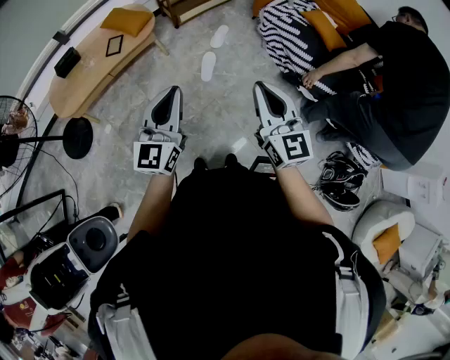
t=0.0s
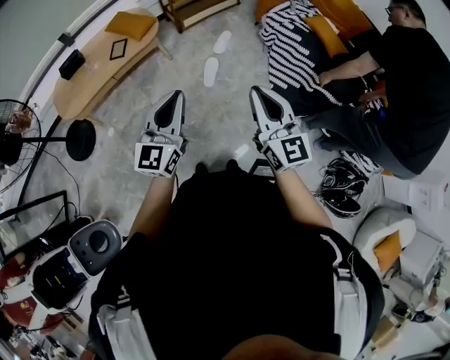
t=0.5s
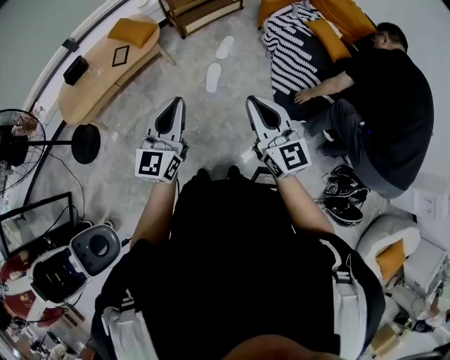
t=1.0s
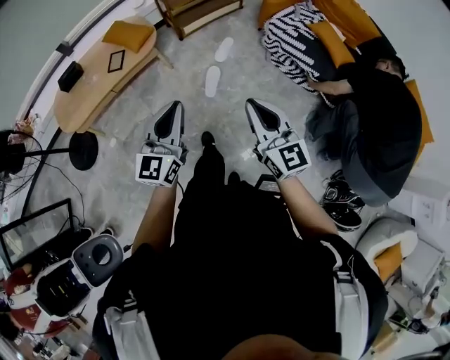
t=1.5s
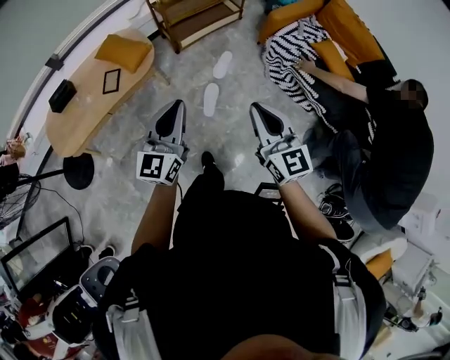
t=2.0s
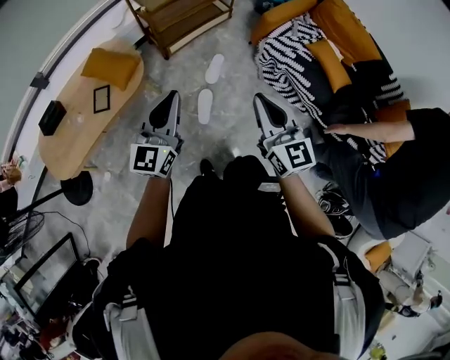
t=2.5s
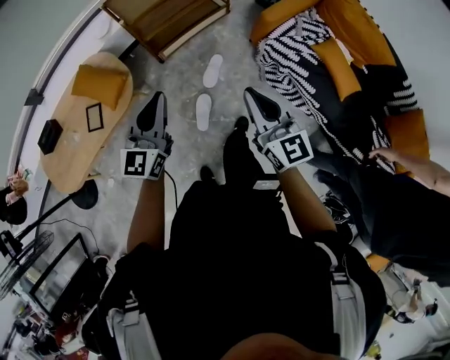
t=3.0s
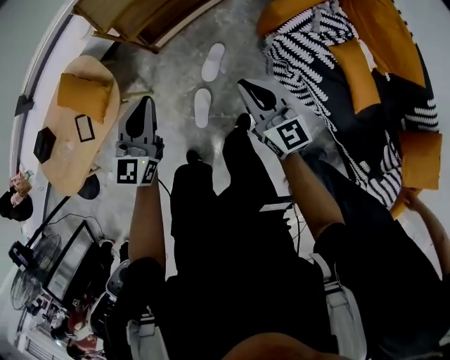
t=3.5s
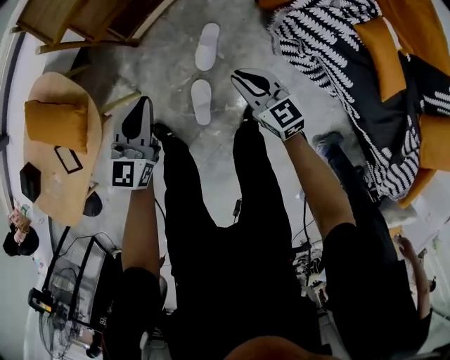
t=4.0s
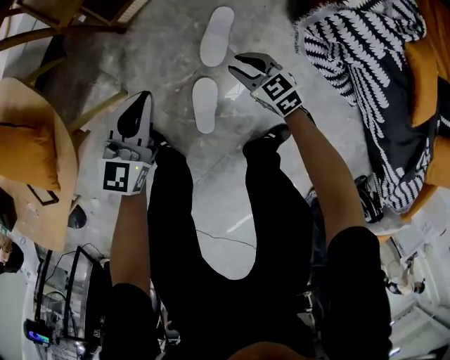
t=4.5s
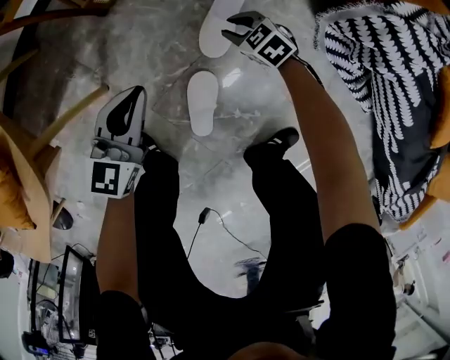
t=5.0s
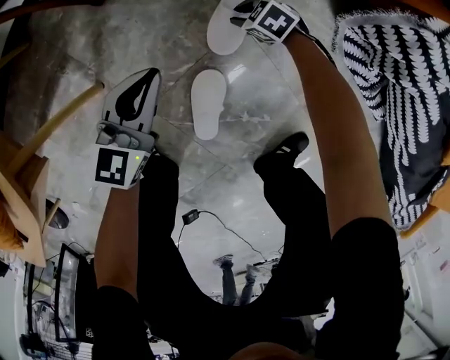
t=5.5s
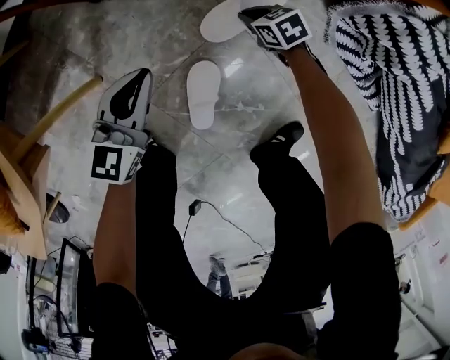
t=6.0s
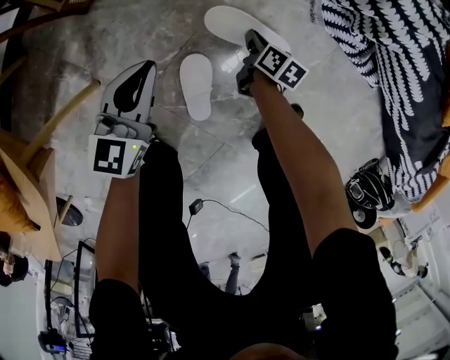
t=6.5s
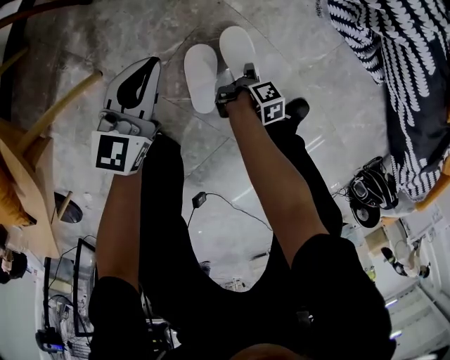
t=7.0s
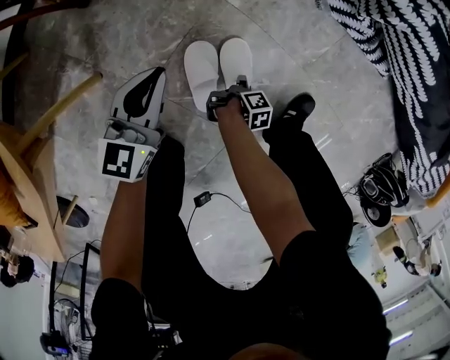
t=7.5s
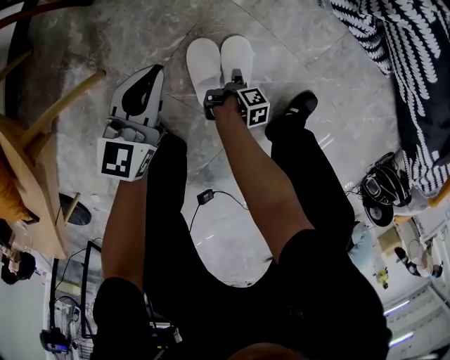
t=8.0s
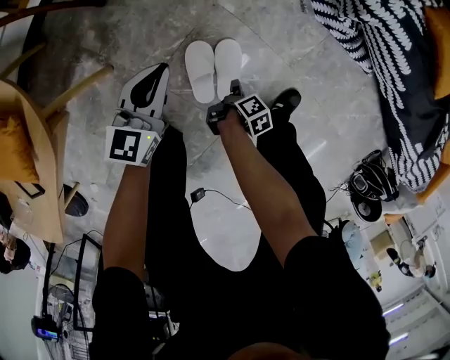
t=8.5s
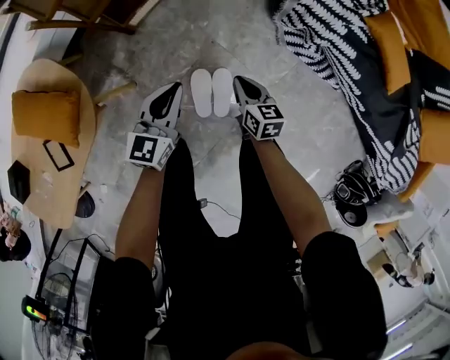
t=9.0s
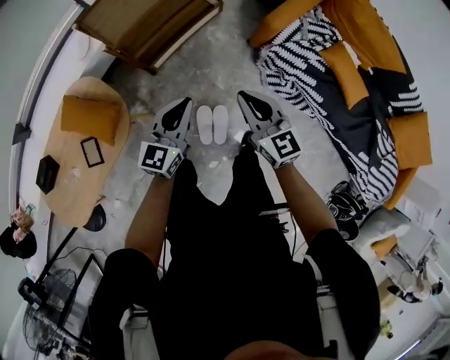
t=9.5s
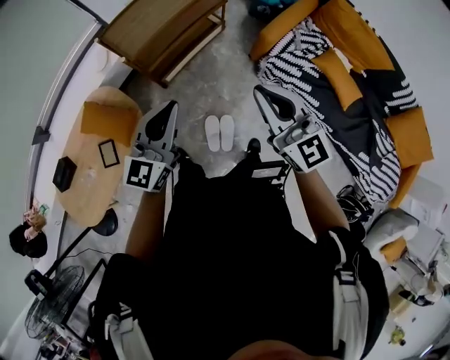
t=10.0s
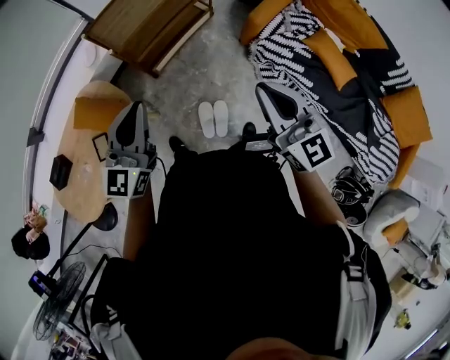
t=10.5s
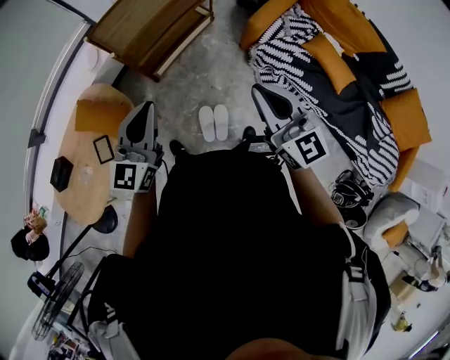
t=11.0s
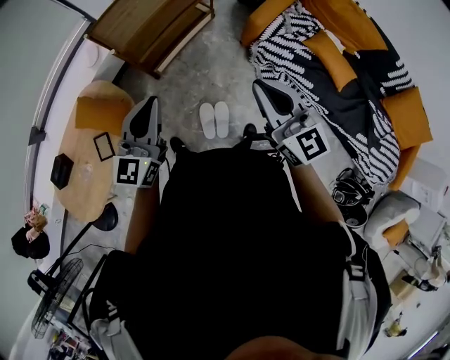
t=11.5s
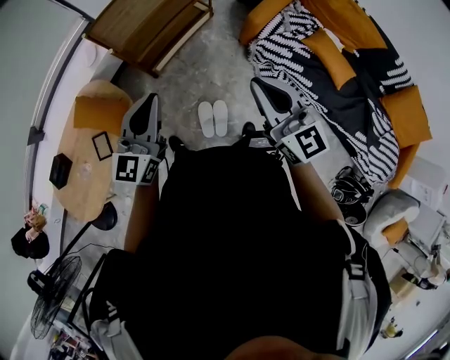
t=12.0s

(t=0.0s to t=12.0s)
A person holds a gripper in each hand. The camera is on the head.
t=0.0s - t=2.0s: The grippers both shift forward by some 25 cm.
t=2.0s - t=4.0s: The pair of grippers is taken forward, roughly 40 cm. The grippers both shift downward by some 35 cm. The right gripper changes its angle by some 30 degrees. Meanwhile the left gripper changes its angle by some 20 degrees.
t=4.0s - t=6.0s: Both grippers move downward, about 40 cm. The right gripper changes its angle by approximately 40 degrees, and opens, then closes again.
t=6.0s - t=8.0s: The right gripper ends up about 30 cm from where it was, rolls clockwise, seen from behind, by roughly 120 degrees, and opens; the left gripper shifts by some 5 cm.
t=8.0s - t=10.0s: The right gripper shifts roughly 90 cm upward, tips its fingers upward by approximately 60 degrees, and closes its fingers. Meanwhile the left gripper moves upward, about 60 cm, and rotates some 20 degrees.
t=10.0s - t=12.0s: The grippers stay close to where they were, moving slightly.

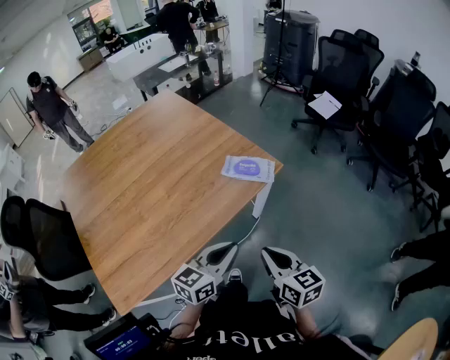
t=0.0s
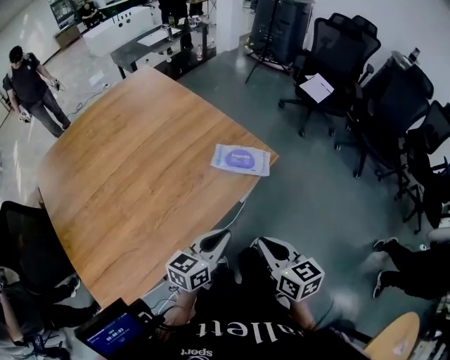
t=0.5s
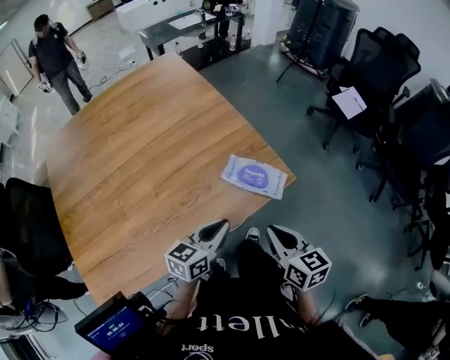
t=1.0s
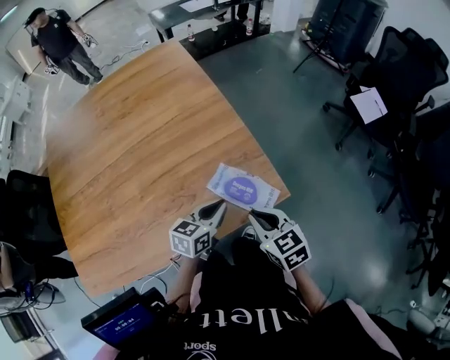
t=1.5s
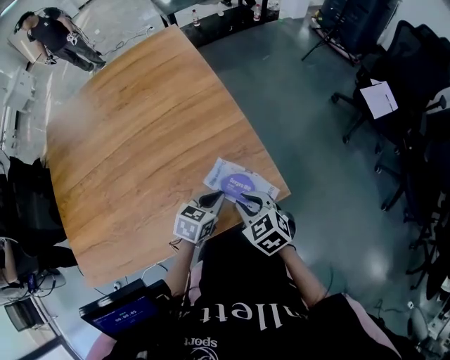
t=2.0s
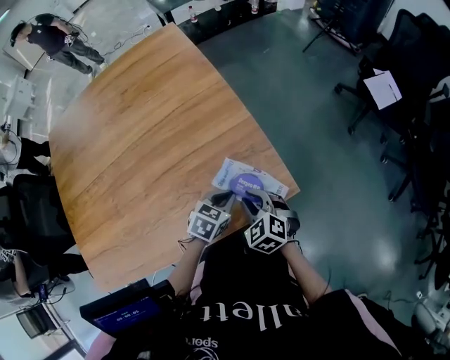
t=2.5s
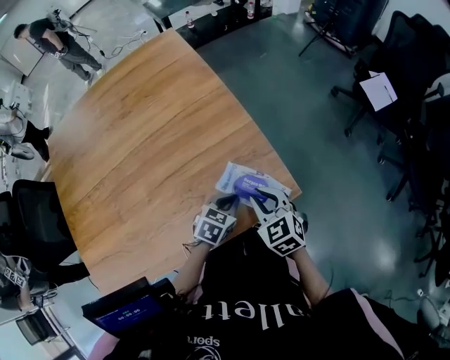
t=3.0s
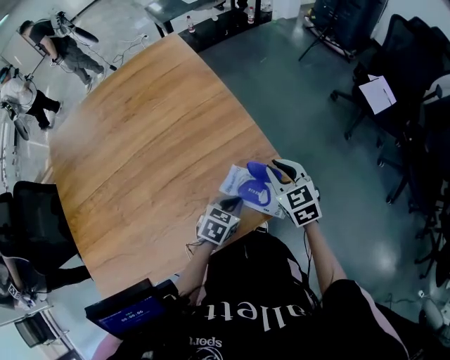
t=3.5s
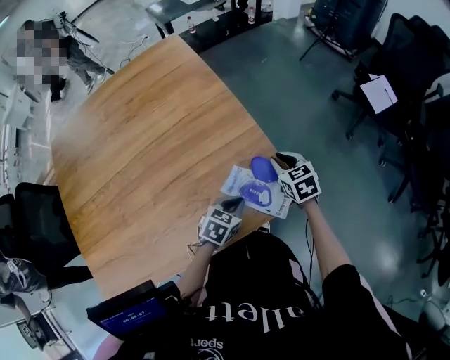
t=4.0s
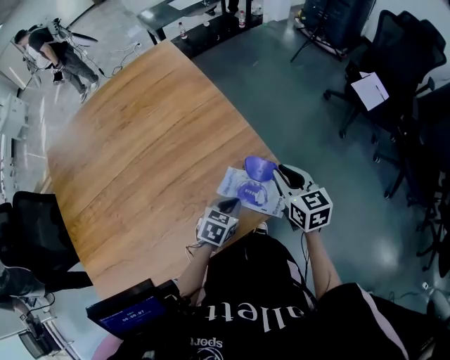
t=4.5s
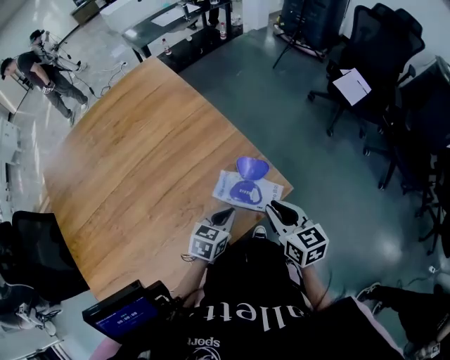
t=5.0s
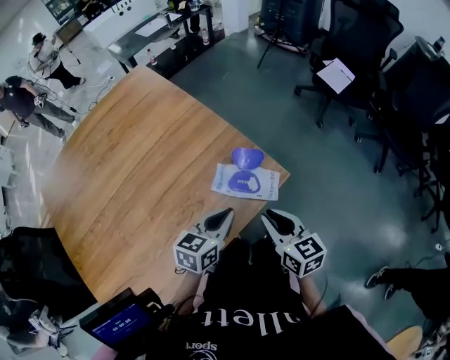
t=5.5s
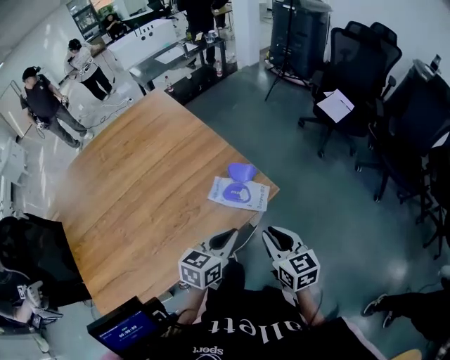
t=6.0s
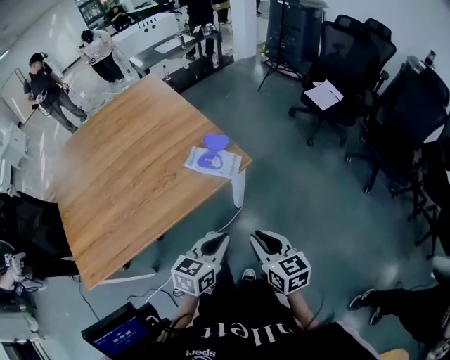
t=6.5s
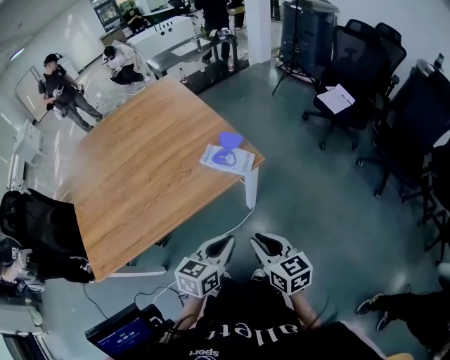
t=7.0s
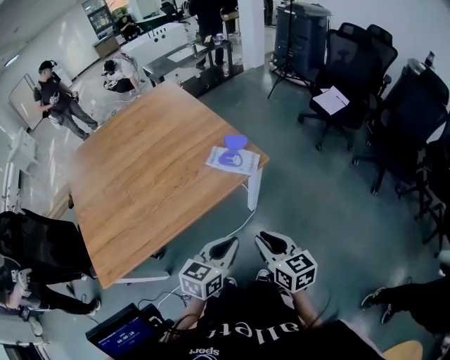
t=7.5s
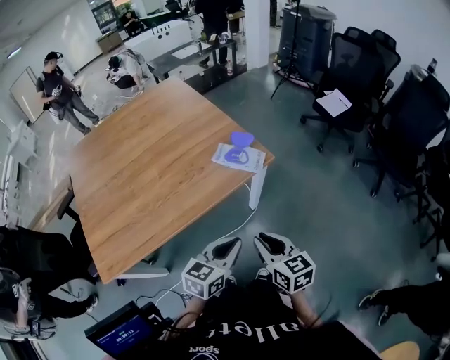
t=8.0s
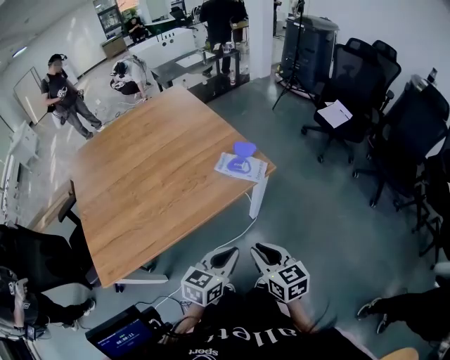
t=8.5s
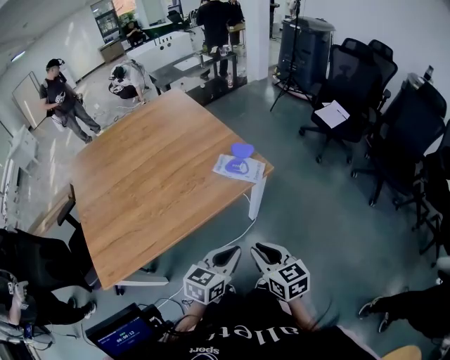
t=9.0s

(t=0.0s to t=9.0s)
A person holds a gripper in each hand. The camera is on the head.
t=0.0s - t=2.0s: The left gripper heads forward and downward, covering about 40 cm, and points its fingers about 30 degrees further downward, while the right gripper is displaced forward by approximately 35 cm, and rotates about 50 degrees.
t=2.0s - t=4.5s: The right gripper is displaced forward, to the right and upward by some 15 cm, and rotates approximately 40 degrees.
t=4.5s - t=7.0s: The right gripper heads backward, covering some 40 cm, while the left gripper heads backward and upward, covering approximately 35 cm, and rotates about 30 degrees.
t=7.0s - t=9.0s: The grippers both shift to the left by about 5 cm.

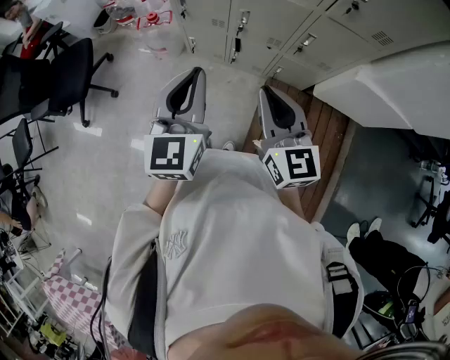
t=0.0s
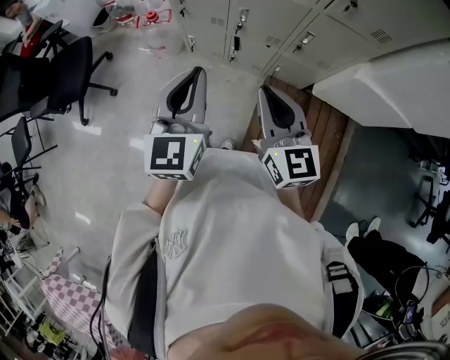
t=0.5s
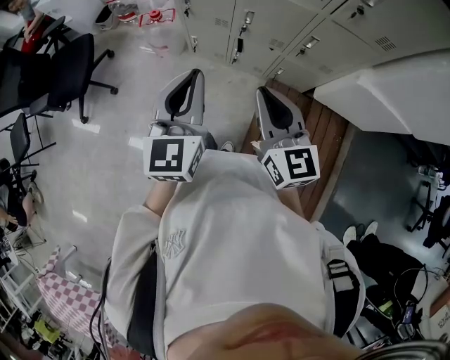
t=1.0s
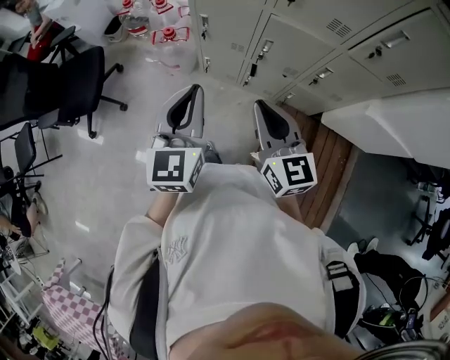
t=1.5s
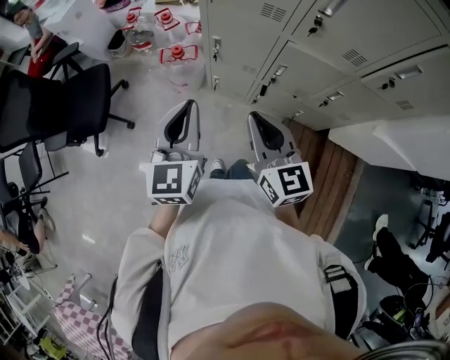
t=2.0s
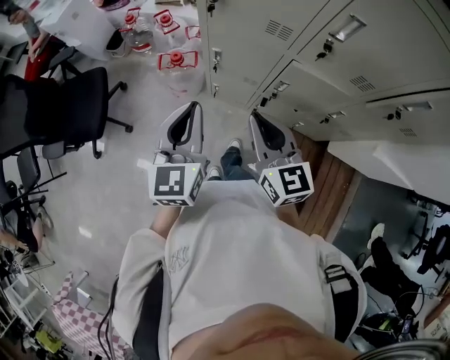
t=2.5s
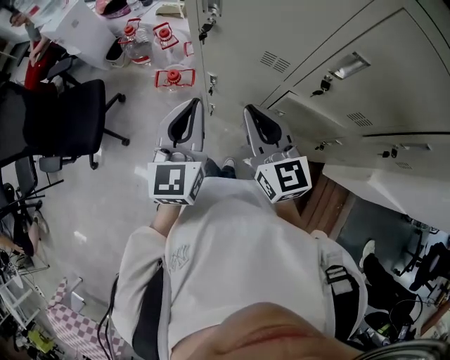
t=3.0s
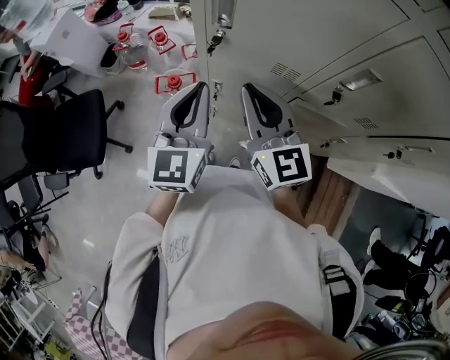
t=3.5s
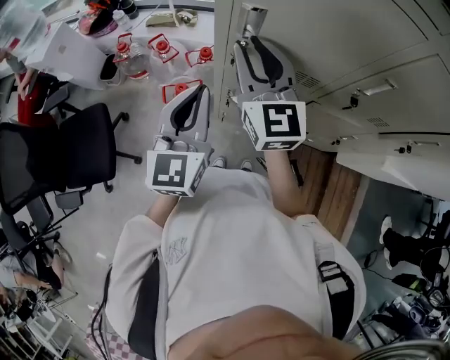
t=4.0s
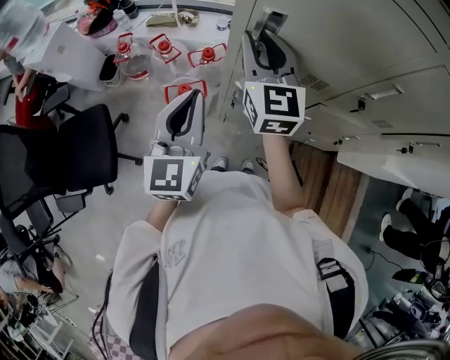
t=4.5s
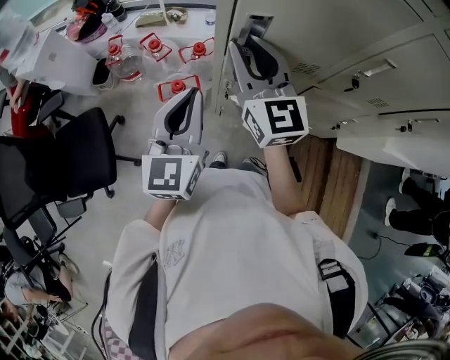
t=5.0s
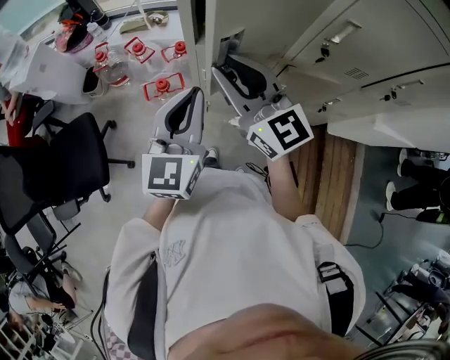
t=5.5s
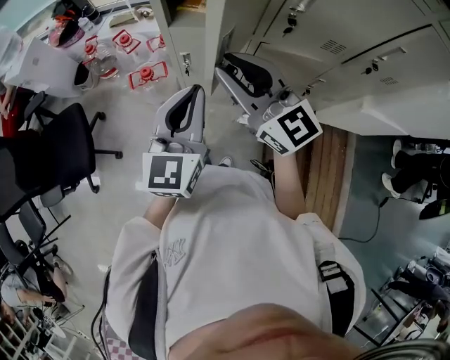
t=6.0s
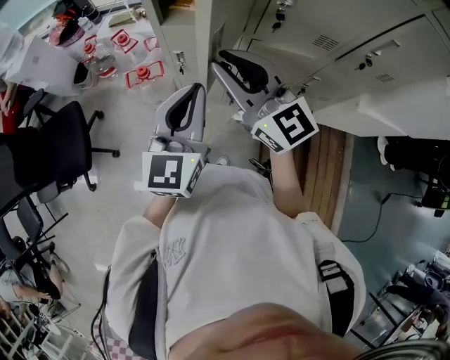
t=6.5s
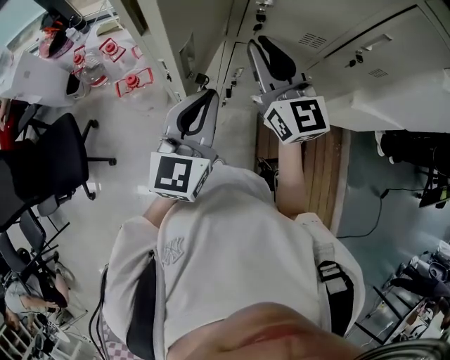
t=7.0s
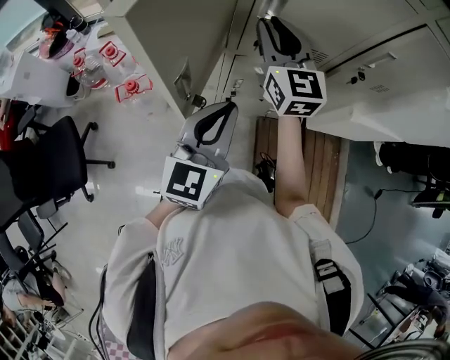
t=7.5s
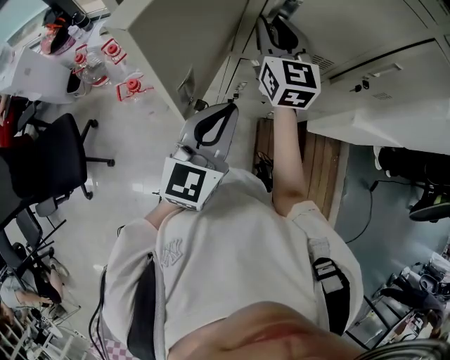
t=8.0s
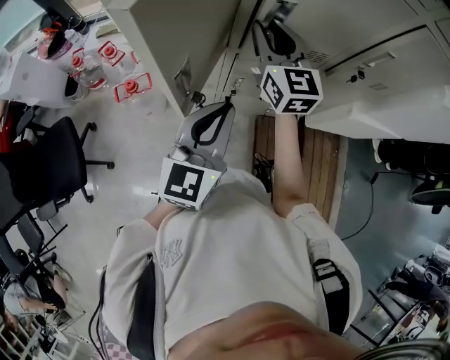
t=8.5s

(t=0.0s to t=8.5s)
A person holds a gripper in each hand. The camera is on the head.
t=0.0s - t=2.0s: The grippers both shift to the left and forward by roughly 20 cm.
t=2.0s - t=4.0s: The two grippers go approximately 30 cm forward. The right gripper rotates roughly 20 degrees.
t=4.0s - t=6.5s: The grippers both shift backward and to the right by some 25 cm. The right gripper changes its angle by about 20 degrees.
t=6.5s - t=8.5s: The left gripper heads to the right, covering about 10 cm, while the right gripper heads forward and to the right, covering about 20 cm, and rotates about 30 degrees.
